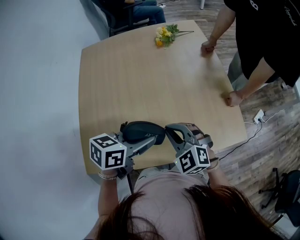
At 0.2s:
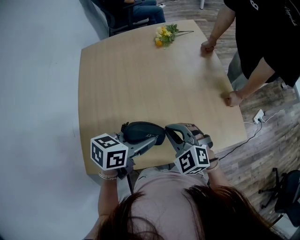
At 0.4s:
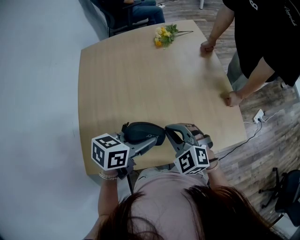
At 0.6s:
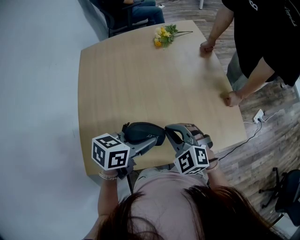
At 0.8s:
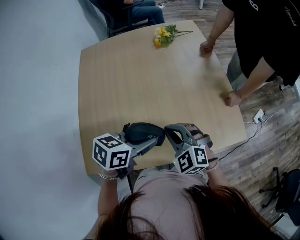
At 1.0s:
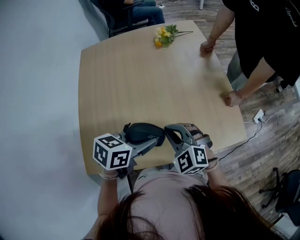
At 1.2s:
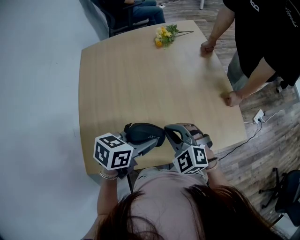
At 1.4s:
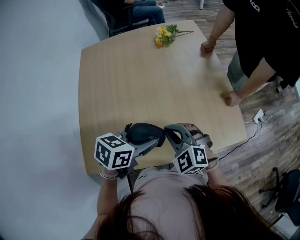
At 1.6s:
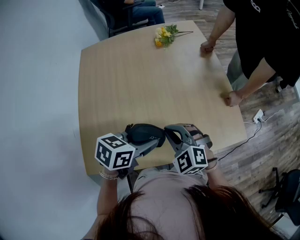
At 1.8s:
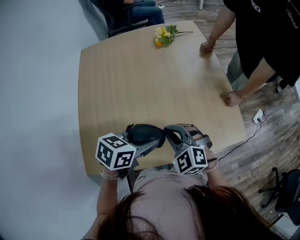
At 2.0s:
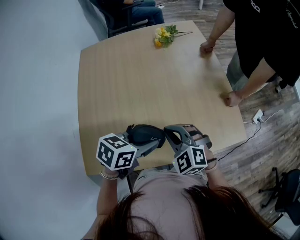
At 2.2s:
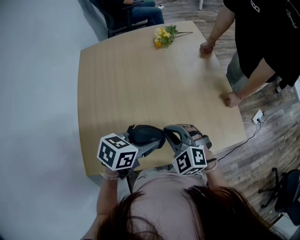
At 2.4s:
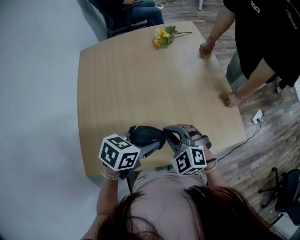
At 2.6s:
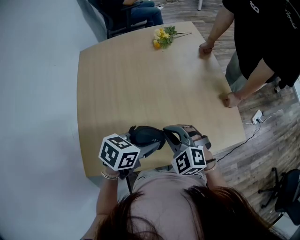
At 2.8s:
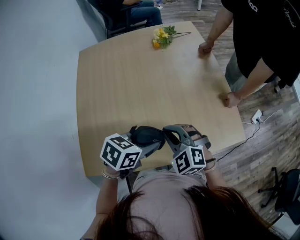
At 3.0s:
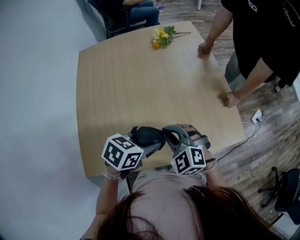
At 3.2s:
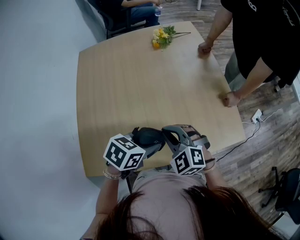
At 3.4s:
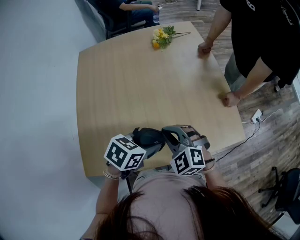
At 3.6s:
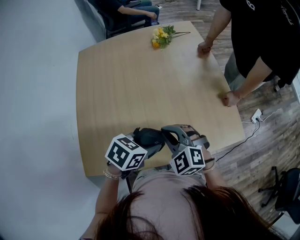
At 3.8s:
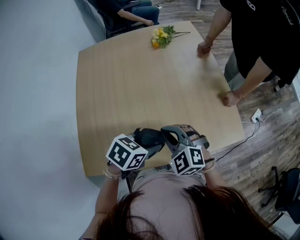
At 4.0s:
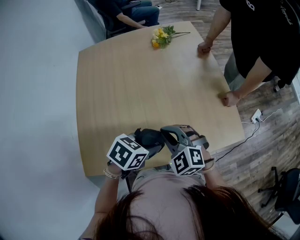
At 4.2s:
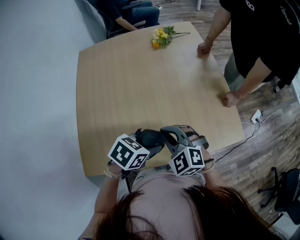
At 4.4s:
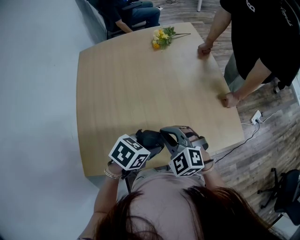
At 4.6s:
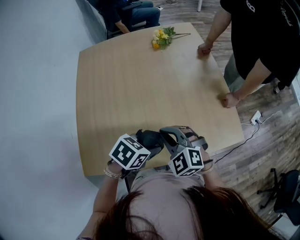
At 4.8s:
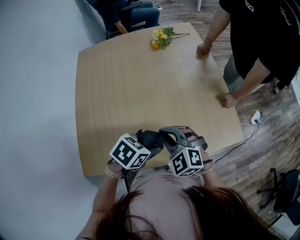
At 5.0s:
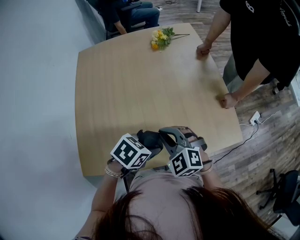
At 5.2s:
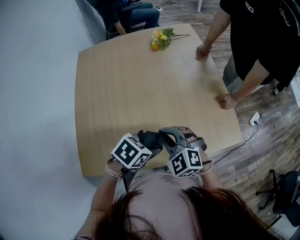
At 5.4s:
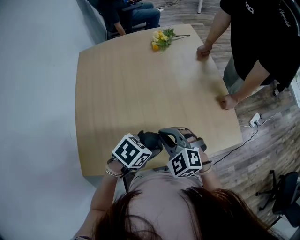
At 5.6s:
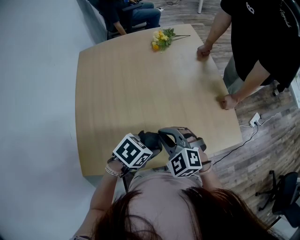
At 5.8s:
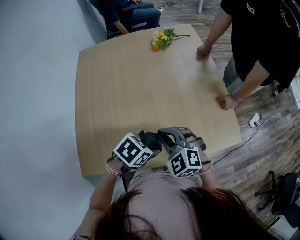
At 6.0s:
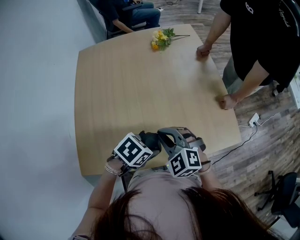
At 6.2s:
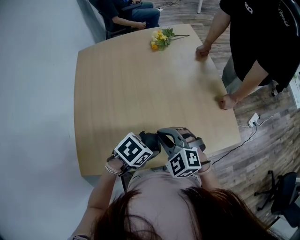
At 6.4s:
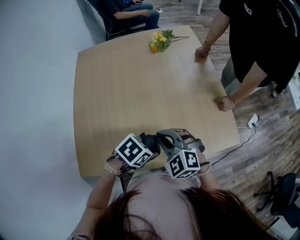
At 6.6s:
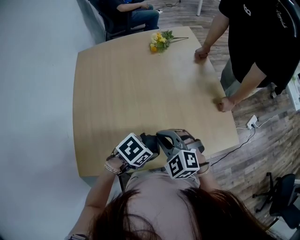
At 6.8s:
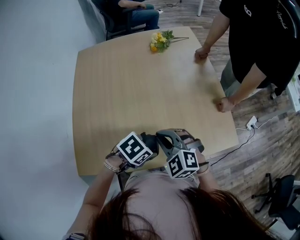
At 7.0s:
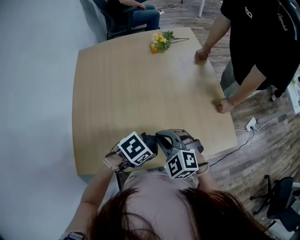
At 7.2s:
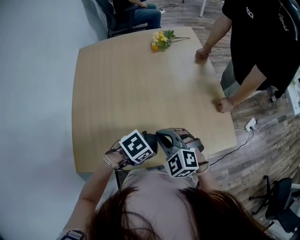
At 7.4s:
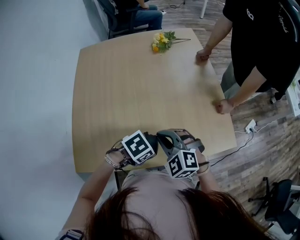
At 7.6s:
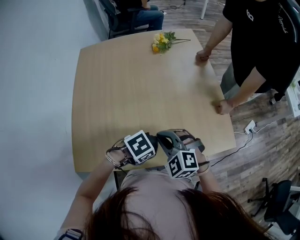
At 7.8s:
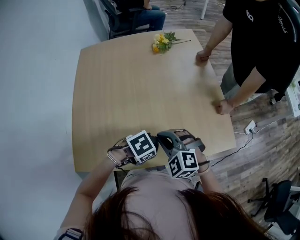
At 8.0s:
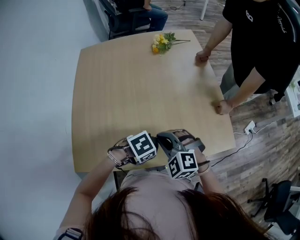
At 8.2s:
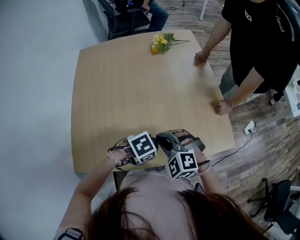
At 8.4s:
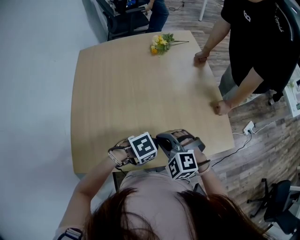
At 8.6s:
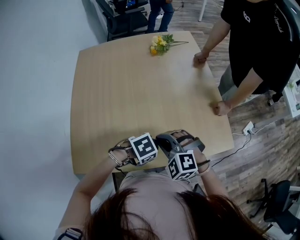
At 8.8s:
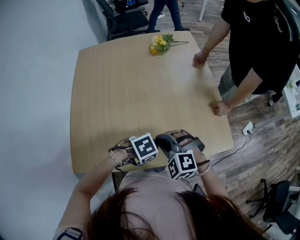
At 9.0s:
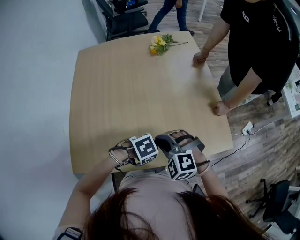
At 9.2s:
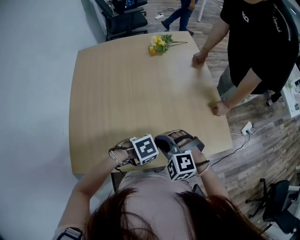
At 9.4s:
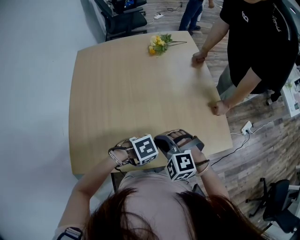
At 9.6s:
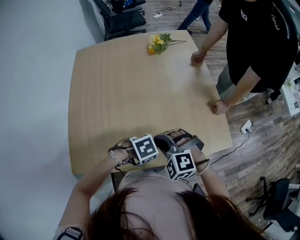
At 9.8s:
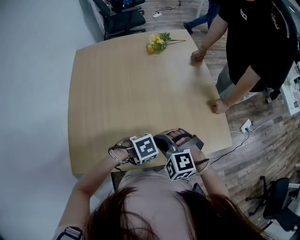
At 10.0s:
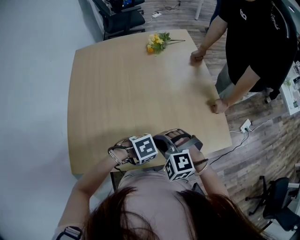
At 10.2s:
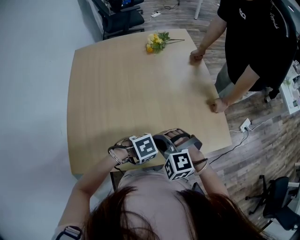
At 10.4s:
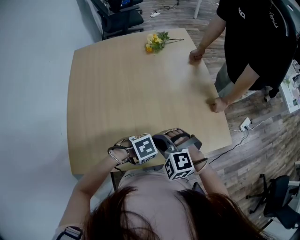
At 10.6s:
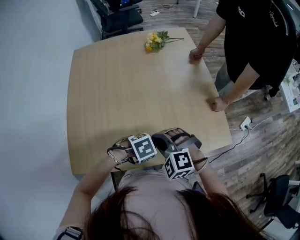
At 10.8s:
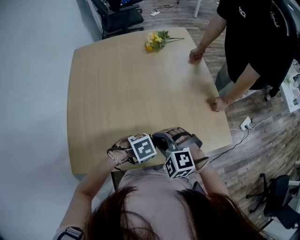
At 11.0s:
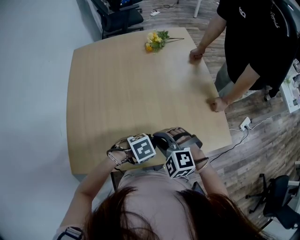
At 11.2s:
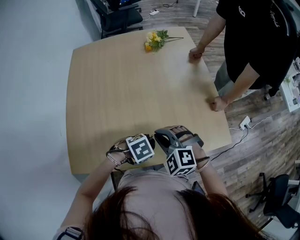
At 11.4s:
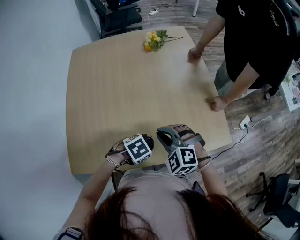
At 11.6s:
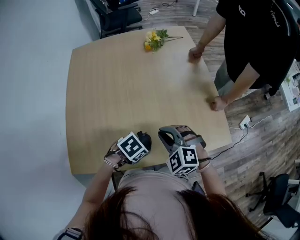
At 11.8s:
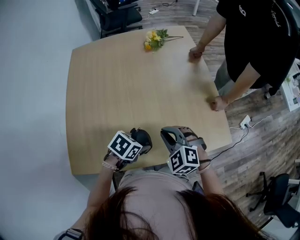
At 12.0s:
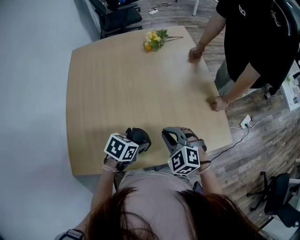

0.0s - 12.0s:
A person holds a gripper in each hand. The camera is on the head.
0.0s - 3.0s: The grippers move only a little.
3.0s - 6.0s: The grippers make only small movements.
6.0s - 7.6s: There are only small adjustments of the grippers.
7.6s - 9.0s: The grippers make only small movements.
9.0s - 10.4s: Neither gripper changes place.
10.4s - 12.0s: The left gripper changes place by approximately 5 cm, and changes its angle by some 50 degrees. Meanwhile the right gripper ends up about 5 cm from where it was, and rotates some 20 degrees.

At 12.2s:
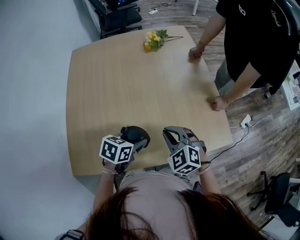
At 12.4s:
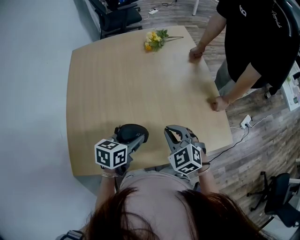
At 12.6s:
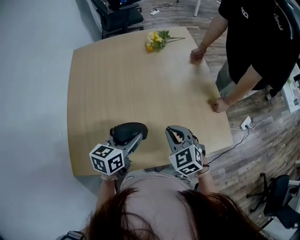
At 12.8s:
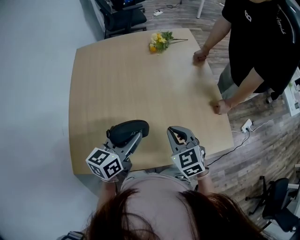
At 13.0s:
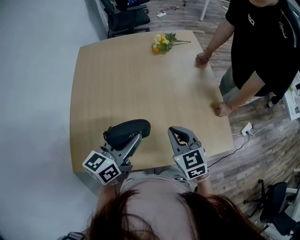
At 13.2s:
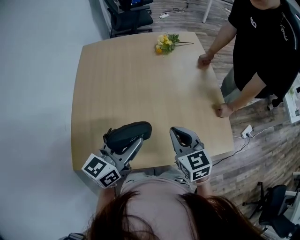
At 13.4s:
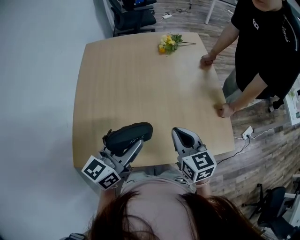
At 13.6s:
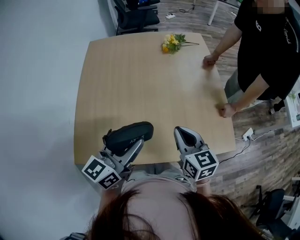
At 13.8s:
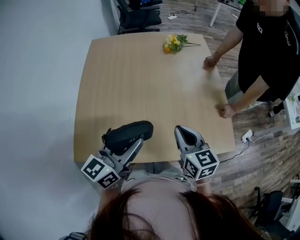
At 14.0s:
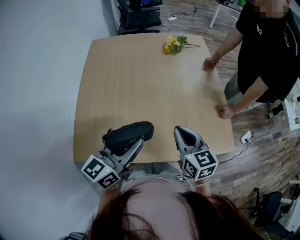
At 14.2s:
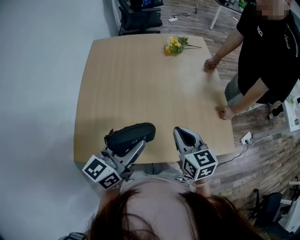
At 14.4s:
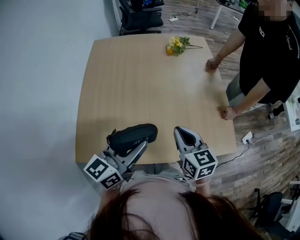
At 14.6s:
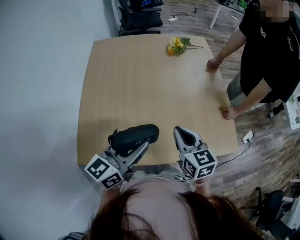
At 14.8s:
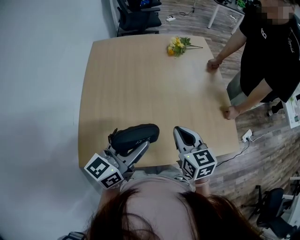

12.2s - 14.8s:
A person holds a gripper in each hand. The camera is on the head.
12.2s - 13.4s: The left gripper travels upward by about 20 cm, and tilts its fingers some 40 degrees upward; the right gripper travels upward by roughly 10 cm, and rolls clockwise, seen from behind, by approximately 40 degrees.
13.4s - 14.8s: The left gripper moves about 5 cm, while the right gripper is displaced to the left by some 5 cm.

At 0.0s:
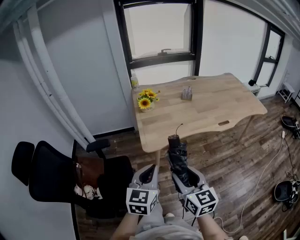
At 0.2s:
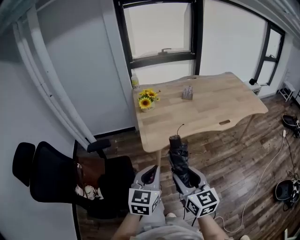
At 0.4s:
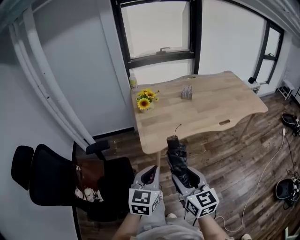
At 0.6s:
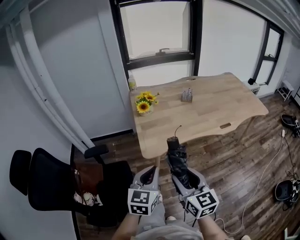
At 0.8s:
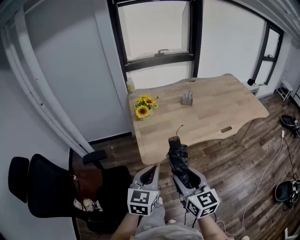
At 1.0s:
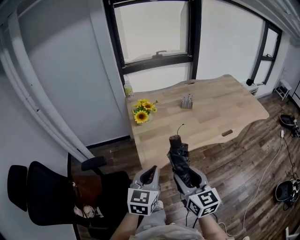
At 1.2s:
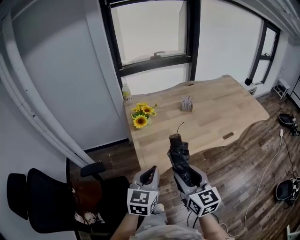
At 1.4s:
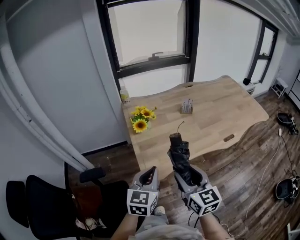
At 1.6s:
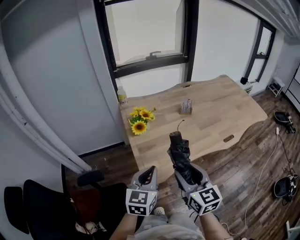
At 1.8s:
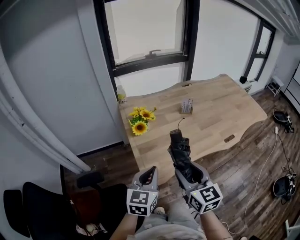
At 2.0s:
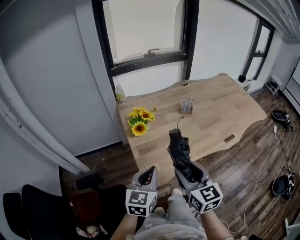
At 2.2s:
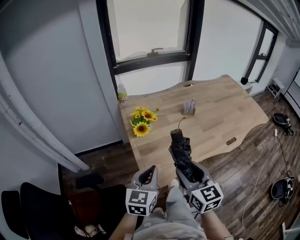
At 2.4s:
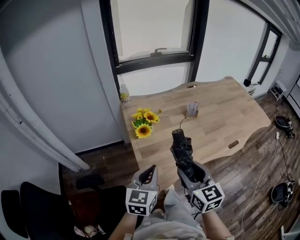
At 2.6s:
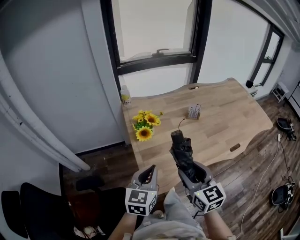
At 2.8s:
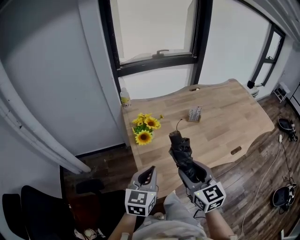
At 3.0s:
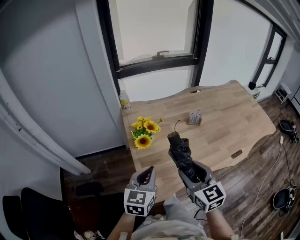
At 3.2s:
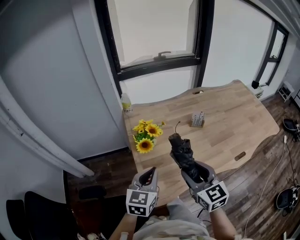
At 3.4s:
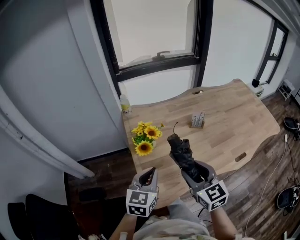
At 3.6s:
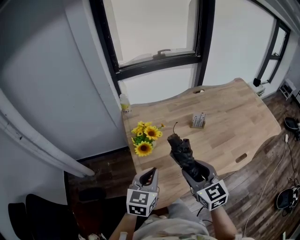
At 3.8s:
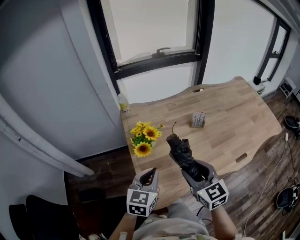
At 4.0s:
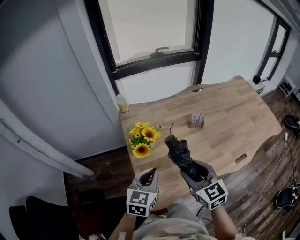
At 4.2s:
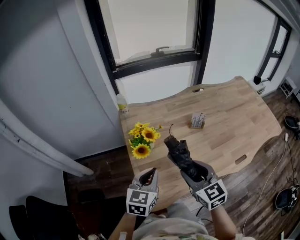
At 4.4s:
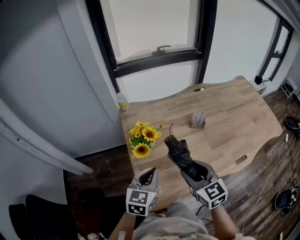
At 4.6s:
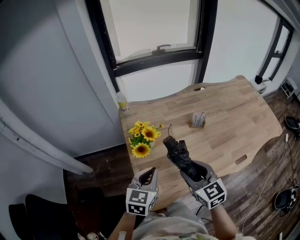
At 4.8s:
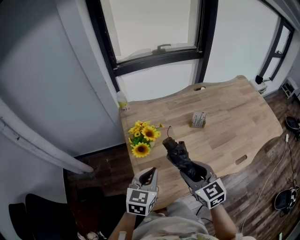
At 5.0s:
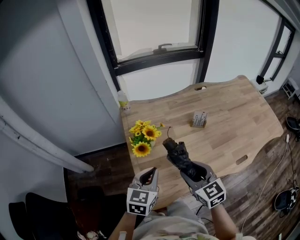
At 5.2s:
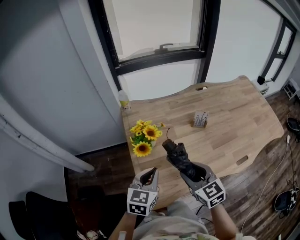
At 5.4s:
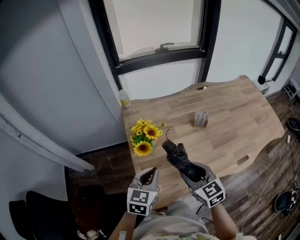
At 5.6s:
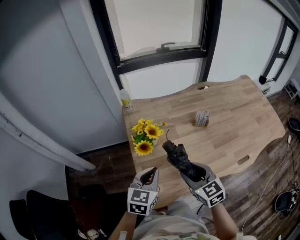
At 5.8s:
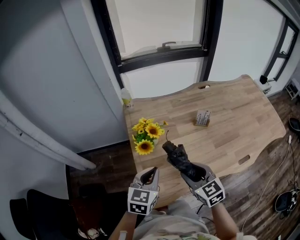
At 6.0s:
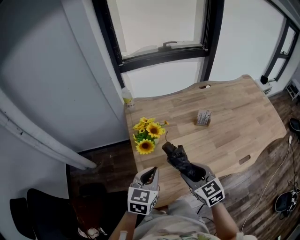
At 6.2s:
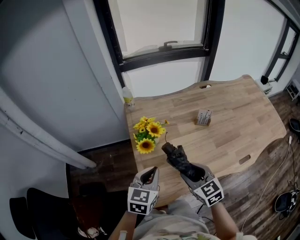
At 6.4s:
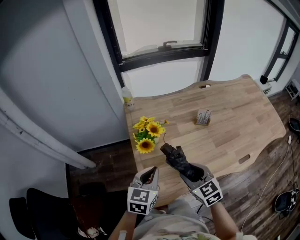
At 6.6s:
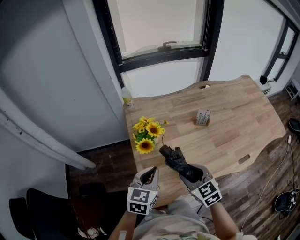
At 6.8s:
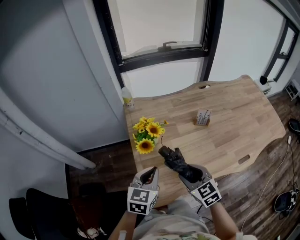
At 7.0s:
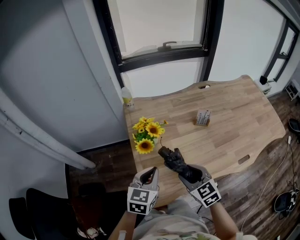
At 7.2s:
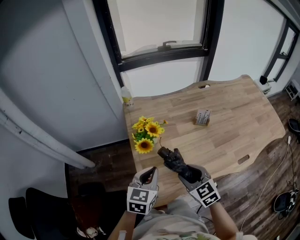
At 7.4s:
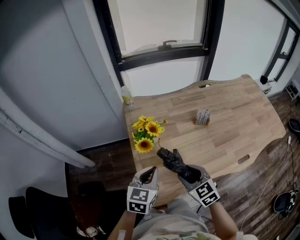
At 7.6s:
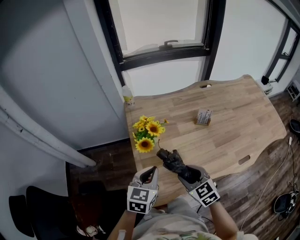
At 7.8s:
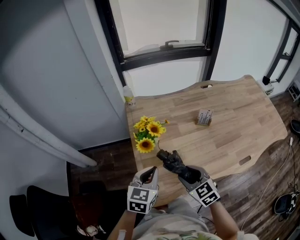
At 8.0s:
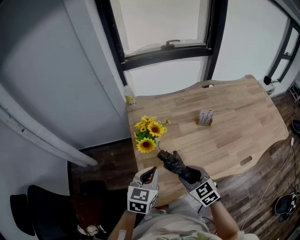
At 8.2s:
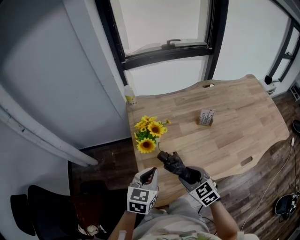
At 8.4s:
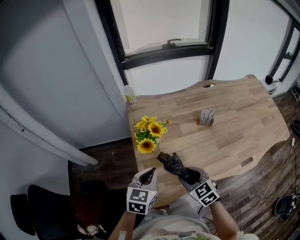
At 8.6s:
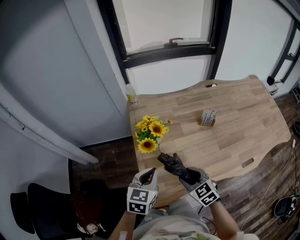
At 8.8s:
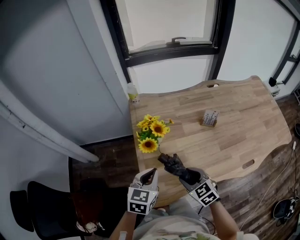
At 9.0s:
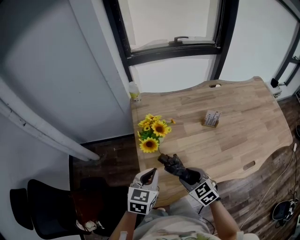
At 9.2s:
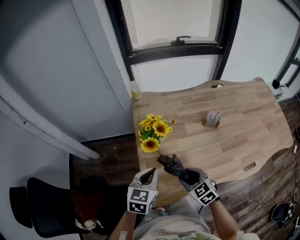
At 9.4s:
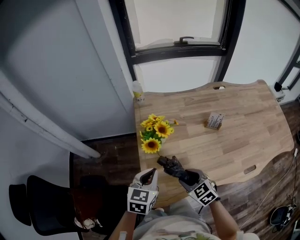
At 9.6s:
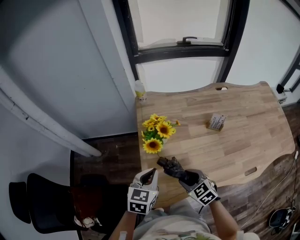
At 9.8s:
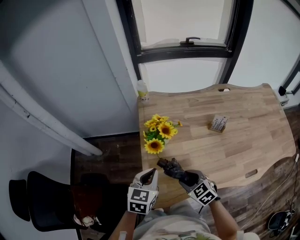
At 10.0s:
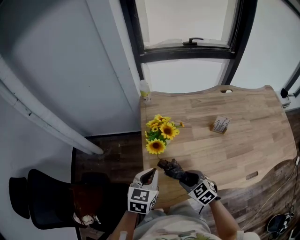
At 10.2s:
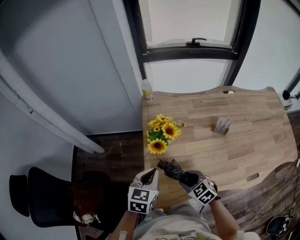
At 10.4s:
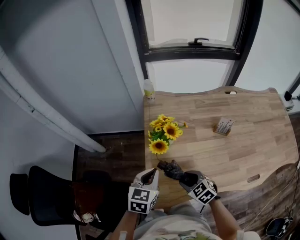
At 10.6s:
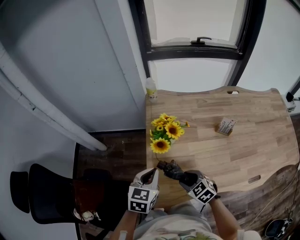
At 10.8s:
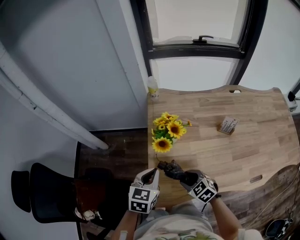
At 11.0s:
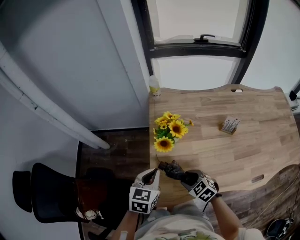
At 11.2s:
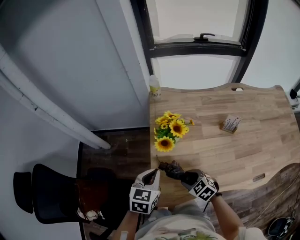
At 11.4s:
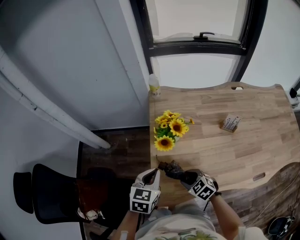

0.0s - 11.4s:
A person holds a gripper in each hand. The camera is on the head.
0.0s - 1.4s: Both grippers move forward, some 20 cm.
1.4s - 2.8s: The two grippers go approximately 15 cm forward.
2.8s - 4.2s: The grippers both shift forward by about 10 cm.
4.2s - 5.6s: The grippers move only a little.
5.6s - 7.2s: There are only small adjustments of the grippers.
7.2s - 8.6s: There are only small adjustments of the grippers.
8.6s - 10.0s: The right gripper travels downward by about 5 cm.
10.0s - 11.4s: The right gripper changes place by roughly 5 cm.
